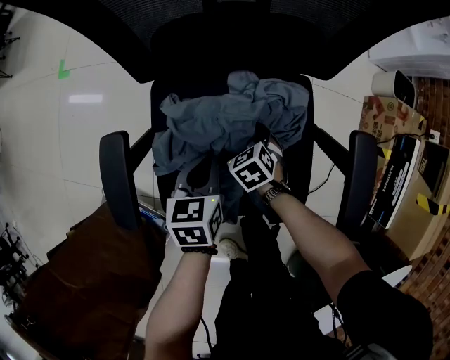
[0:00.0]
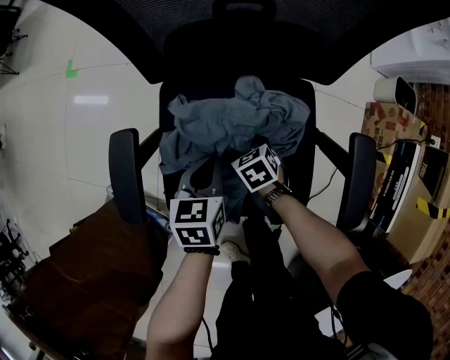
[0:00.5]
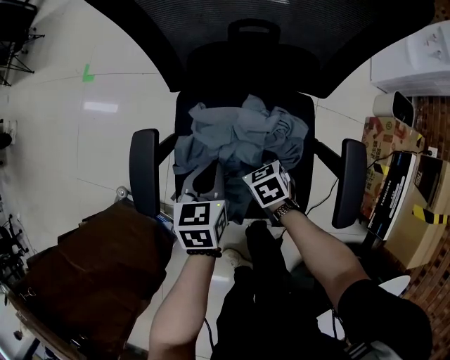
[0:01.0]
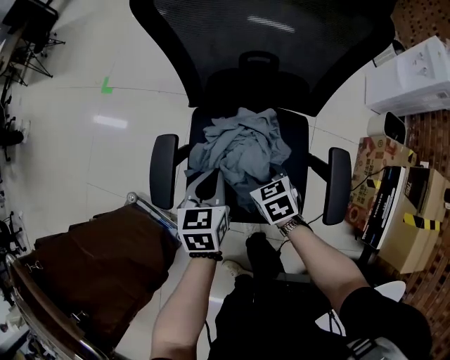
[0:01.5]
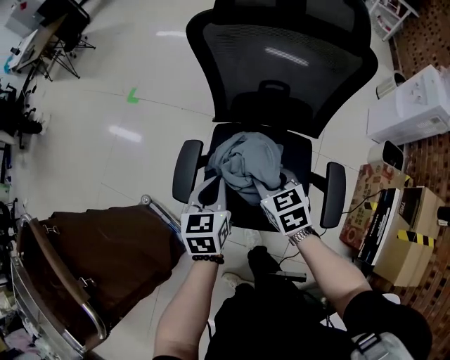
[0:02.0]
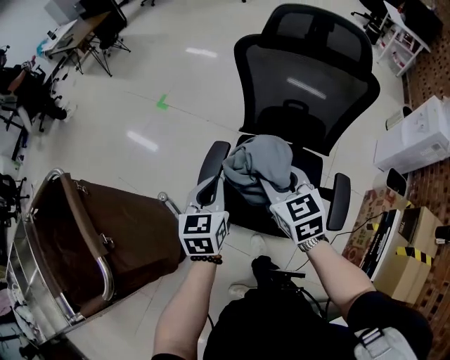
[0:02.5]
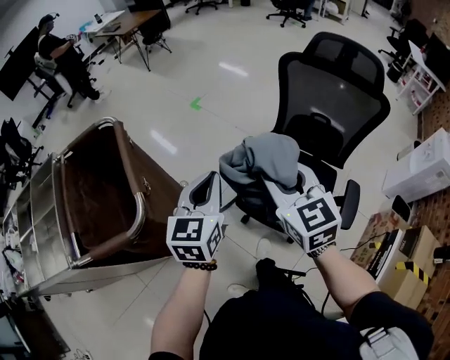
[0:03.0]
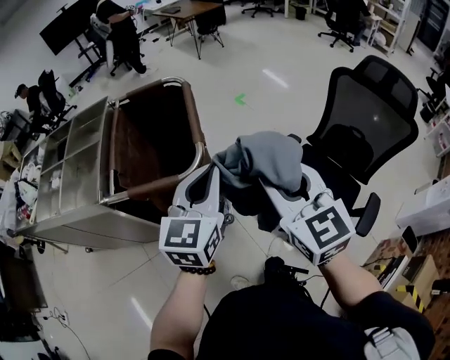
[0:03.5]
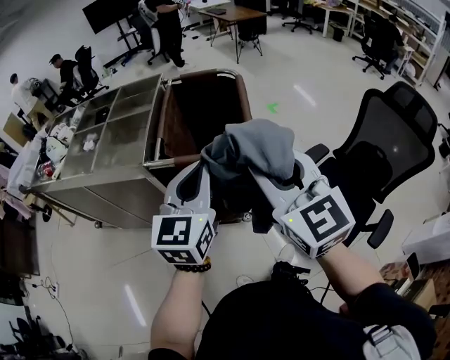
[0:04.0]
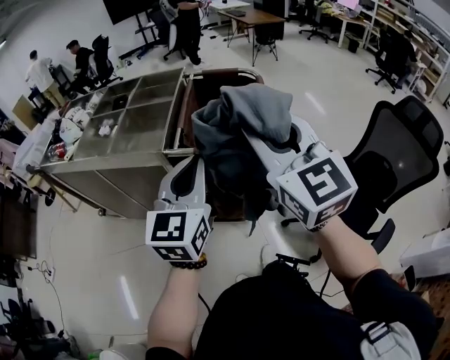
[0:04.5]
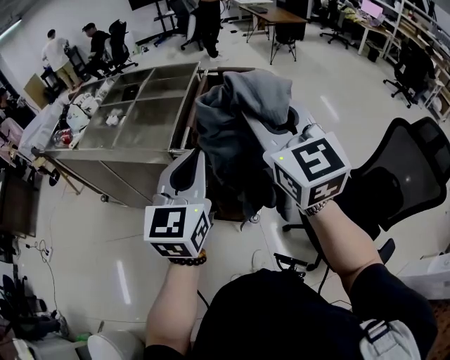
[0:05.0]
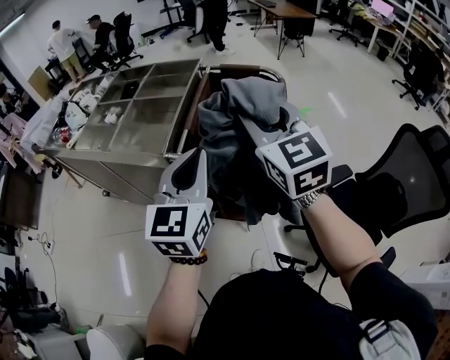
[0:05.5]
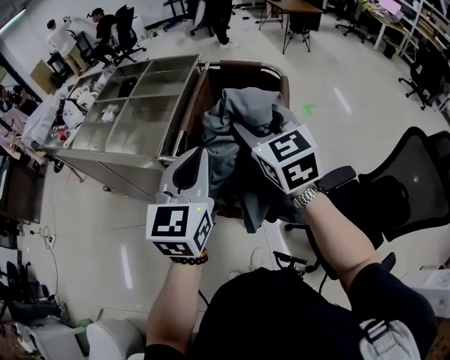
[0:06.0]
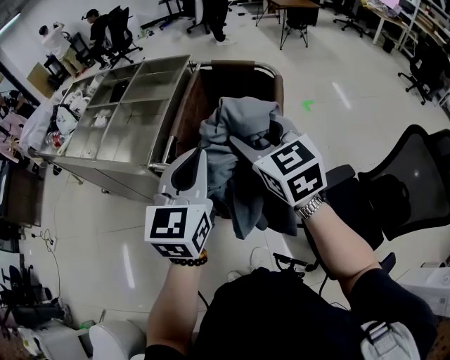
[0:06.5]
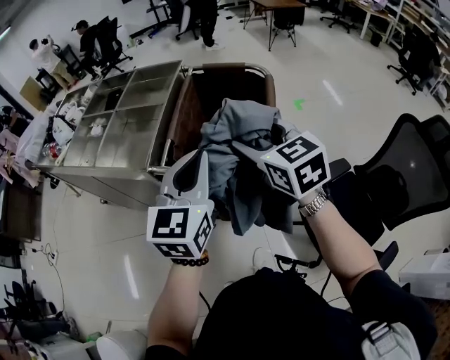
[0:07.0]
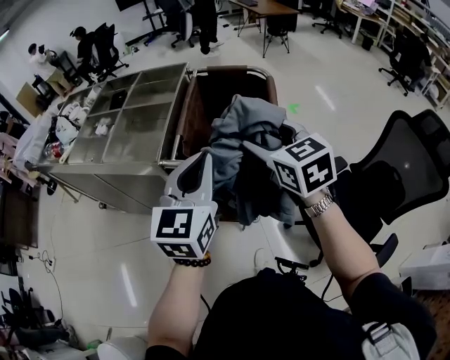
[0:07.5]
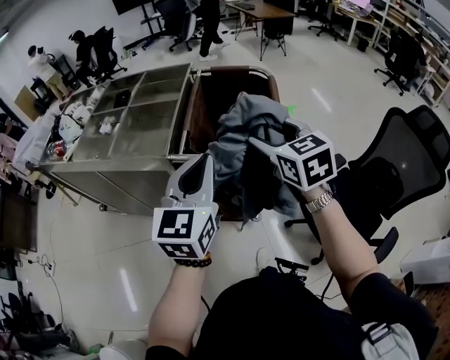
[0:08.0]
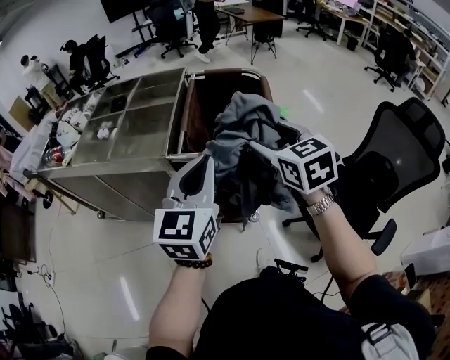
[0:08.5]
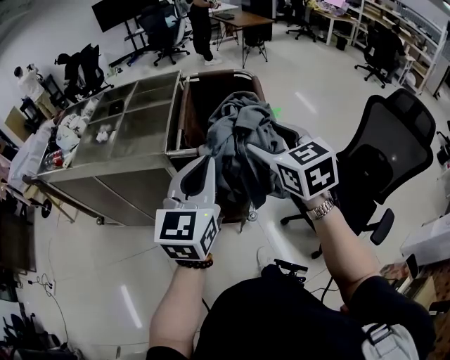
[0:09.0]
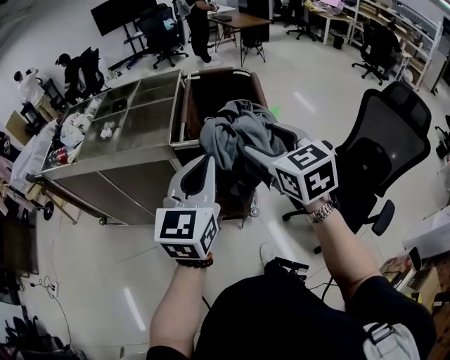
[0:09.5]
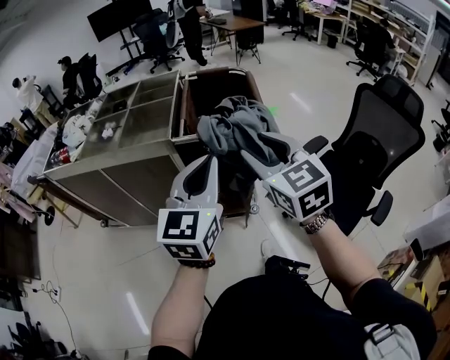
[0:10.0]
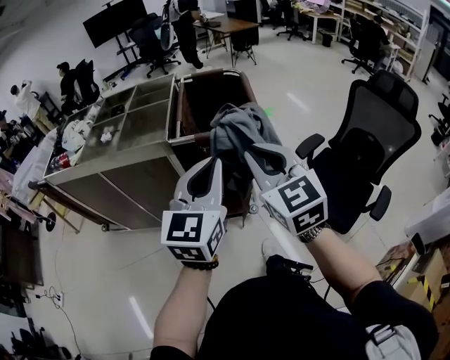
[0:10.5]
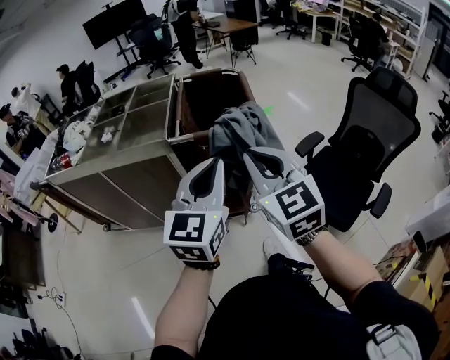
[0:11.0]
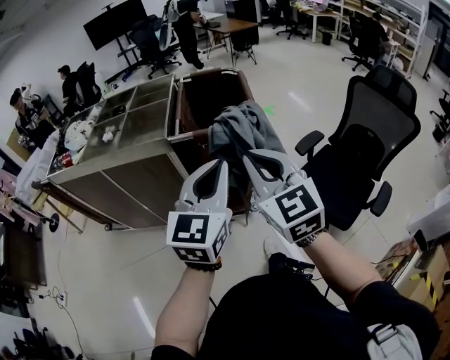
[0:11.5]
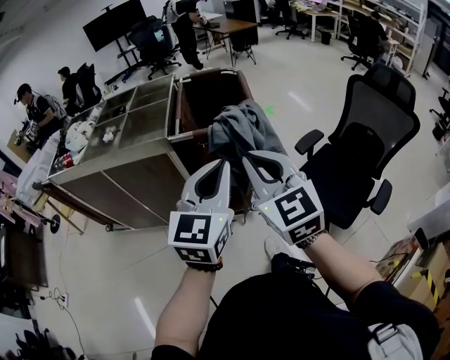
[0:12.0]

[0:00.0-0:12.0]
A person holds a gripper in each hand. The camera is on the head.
0:00.0 to 0:02.0: The two grippers go approximately 35 cm upward. The left gripper changes its angle by about 20 degrees; the right gripper swivels approximately 30 degrees, and closes.
0:02.0 to 0:04.0: Both grippers are carried some 60 cm. The right gripper tips its fingers upward by about 40 degrees, while the left gripper points its fingers roughly 30 degrees further upward.
0:04.0 to 0:06.0: The right gripper goes some 25 cm forward. Meanwhile the left gripper moves forward, approximately 10 cm.
0:06.0 to 0:08.0: The grippers both shift backward by about 5 cm.
0:08.0 to 0:10.0: The grippers both shift backward by roughly 20 cm.
0:10.0 to 0:12.0: The left gripper moves some 5 cm. Meanwhile the right gripper travels backward by some 5 cm.

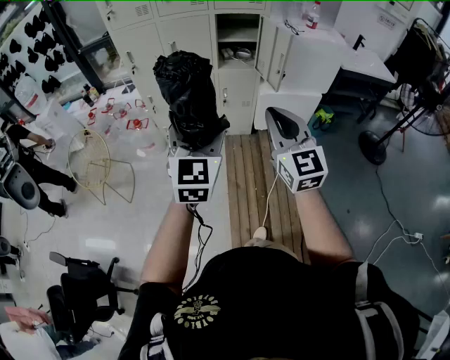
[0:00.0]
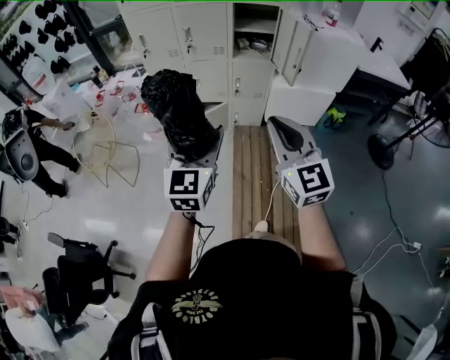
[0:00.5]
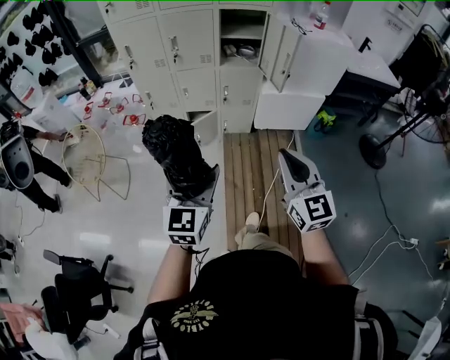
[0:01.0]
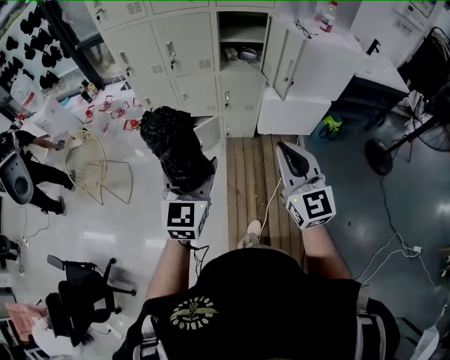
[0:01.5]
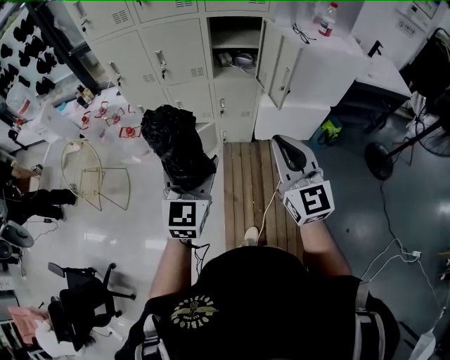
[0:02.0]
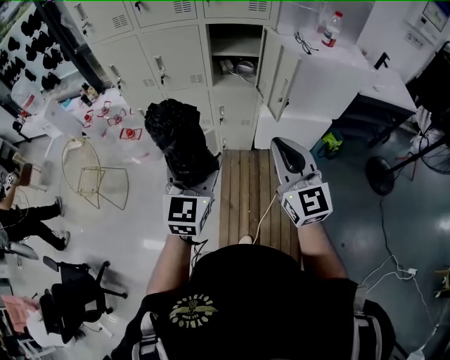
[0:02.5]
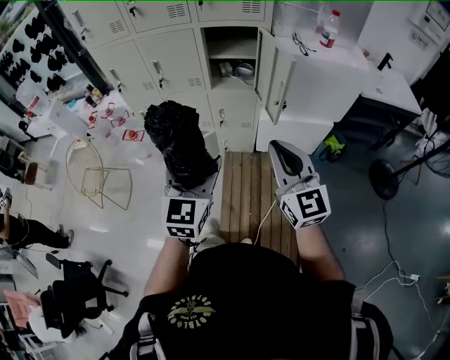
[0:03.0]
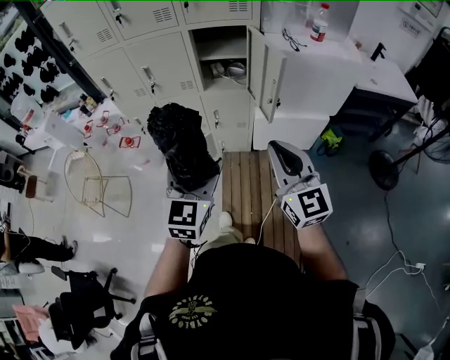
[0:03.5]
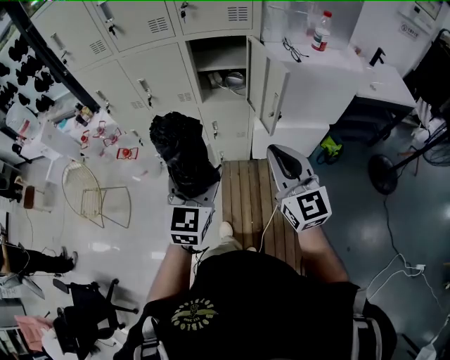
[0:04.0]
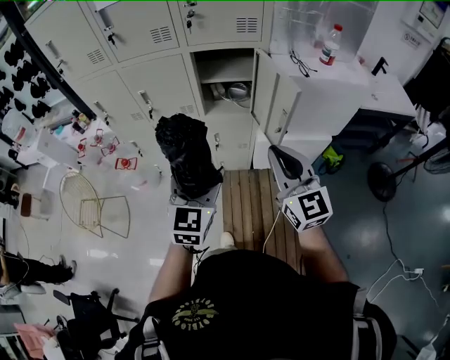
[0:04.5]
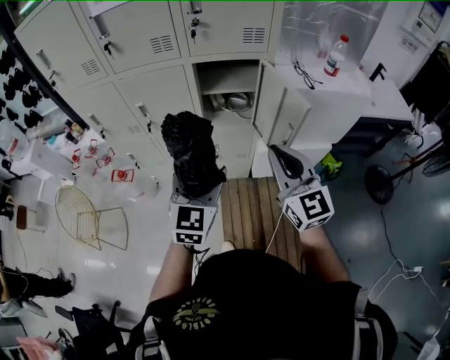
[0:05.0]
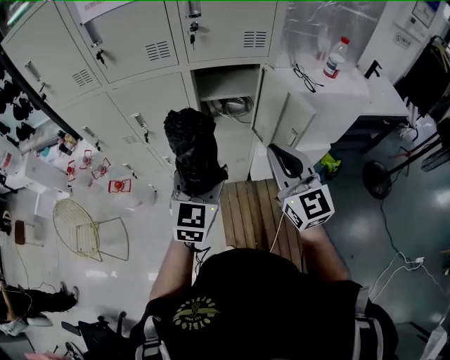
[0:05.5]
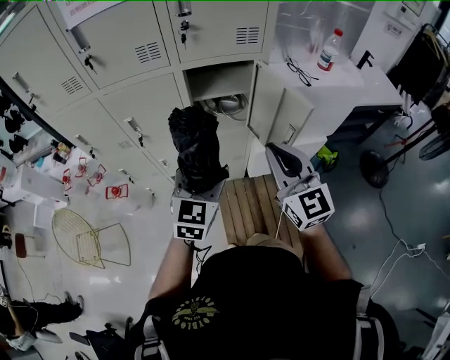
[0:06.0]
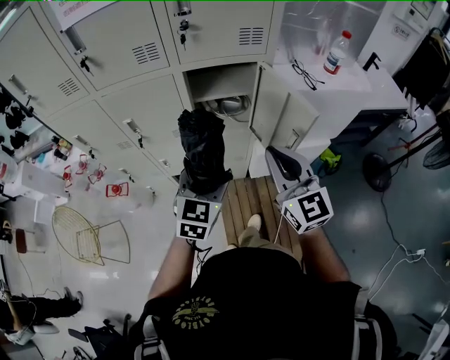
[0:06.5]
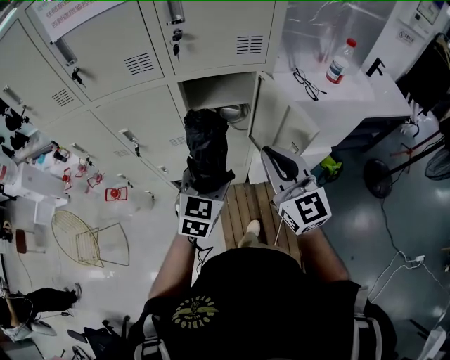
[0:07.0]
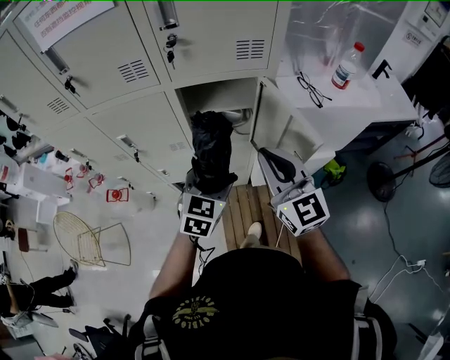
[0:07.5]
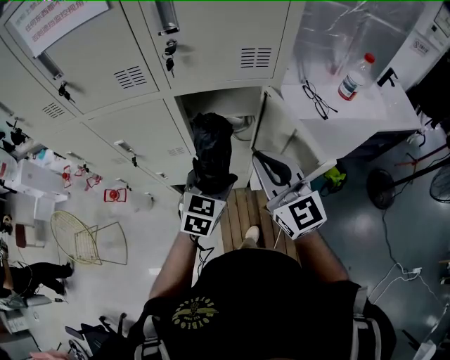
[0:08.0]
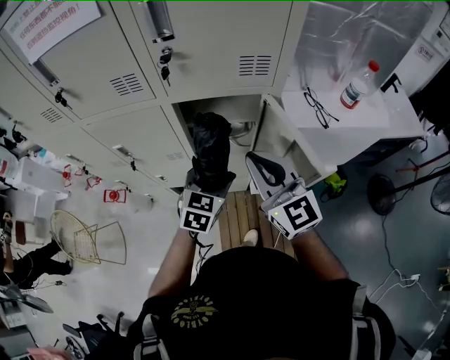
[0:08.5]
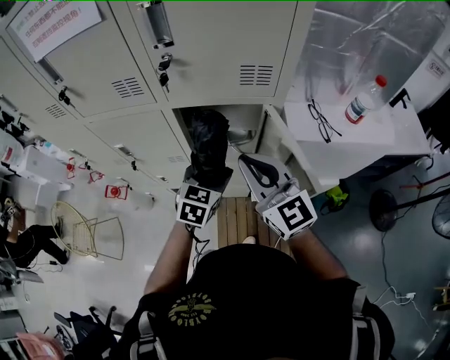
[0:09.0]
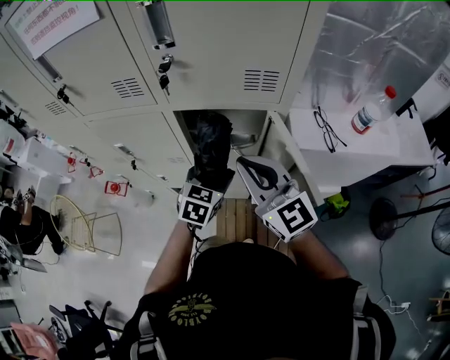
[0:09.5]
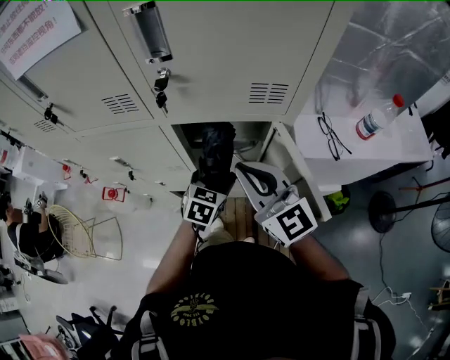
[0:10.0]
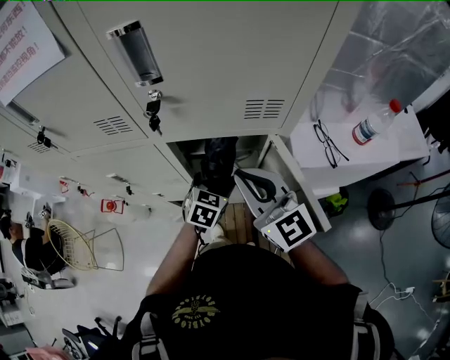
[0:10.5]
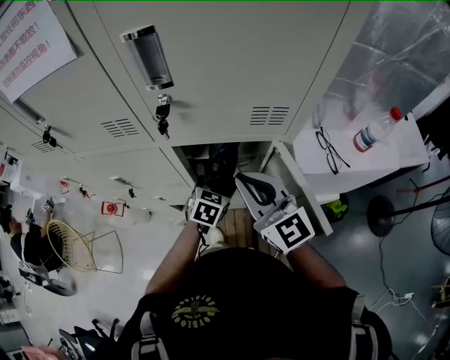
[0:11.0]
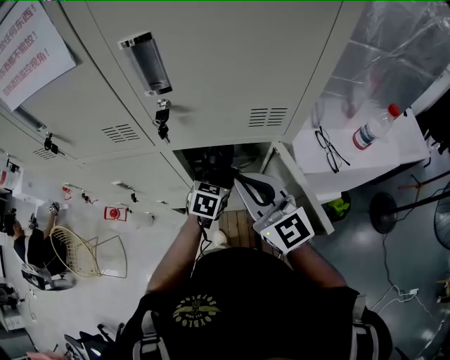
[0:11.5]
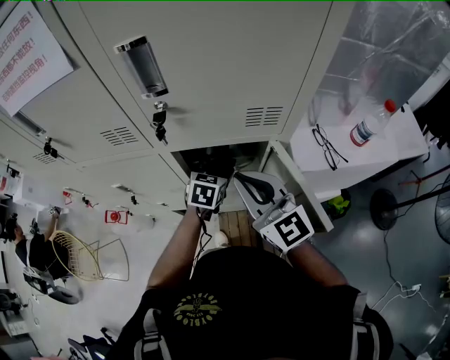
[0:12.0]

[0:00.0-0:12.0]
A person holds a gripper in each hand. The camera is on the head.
0:00.0 to 0:02.0: The left gripper shifts approximately 15 cm forward and downward, while the right gripper moves forward and to the right, about 15 cm.
0:02.0 to 0:04.0: The grippers both shift forward and to the right by some 15 cm.
0:04.0 to 0:06.0: The right gripper is displaced forward and to the left by some 20 cm; the left gripper shifts about 20 cm forward.
0:06.0 to 0:08.0: The left gripper heads forward and downward, covering approximately 15 cm. The right gripper travels forward by some 15 cm.
0:08.0 to 0:10.0: The right gripper heads forward, covering approximately 10 cm, while the left gripper is displaced forward and downward by some 15 cm.
0:10.0 to 0:12.0: The left gripper heads forward, covering approximately 10 cm.

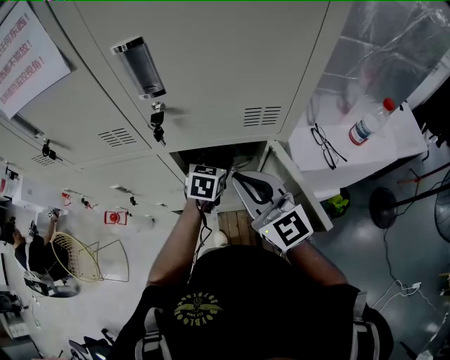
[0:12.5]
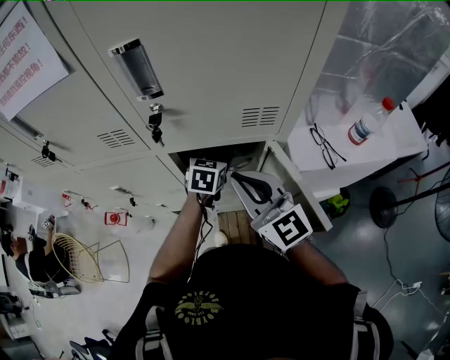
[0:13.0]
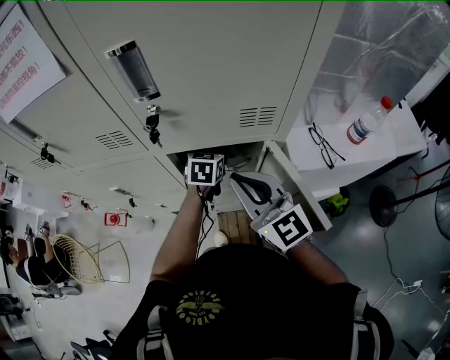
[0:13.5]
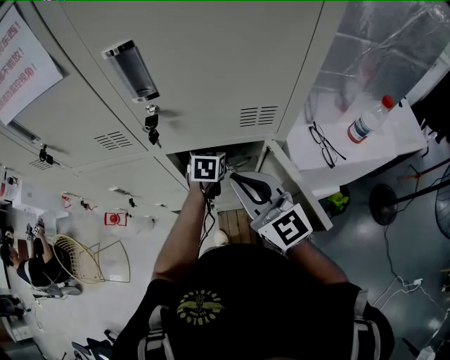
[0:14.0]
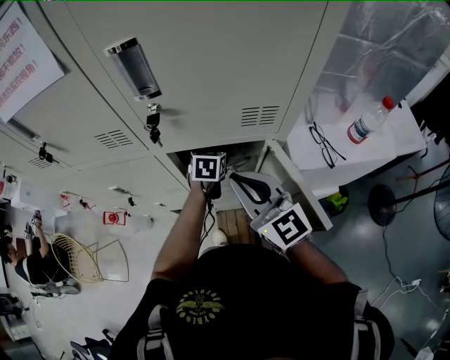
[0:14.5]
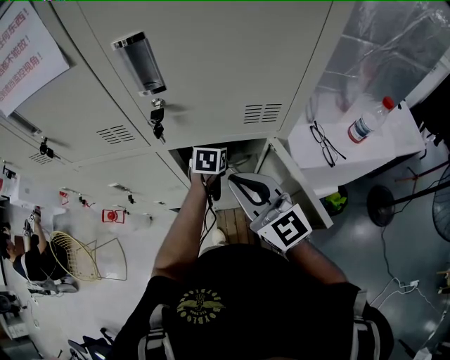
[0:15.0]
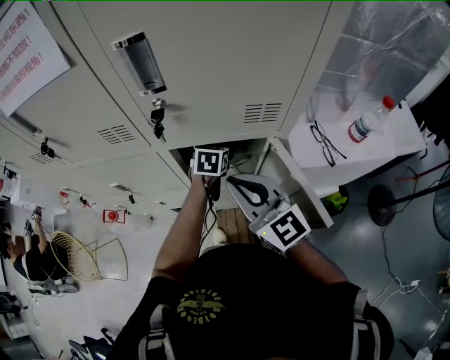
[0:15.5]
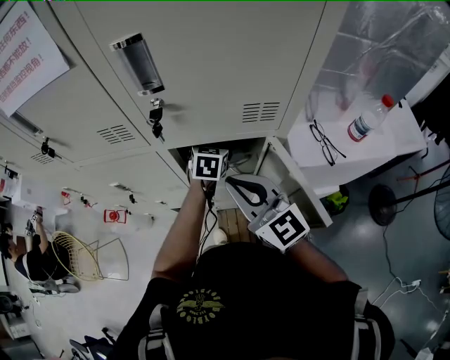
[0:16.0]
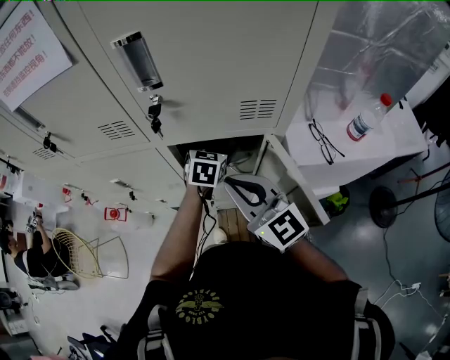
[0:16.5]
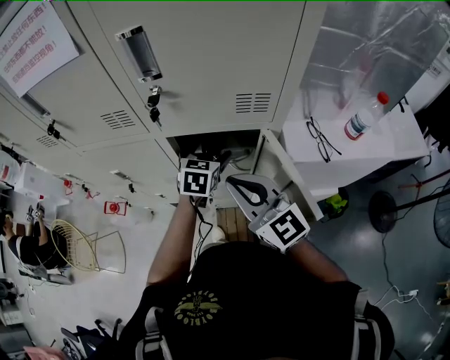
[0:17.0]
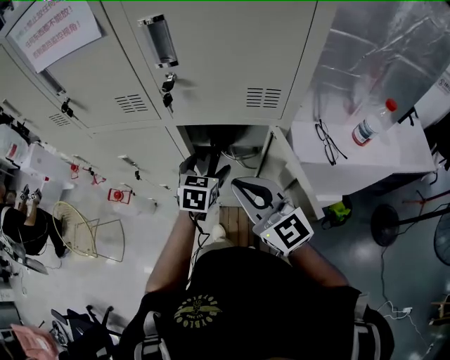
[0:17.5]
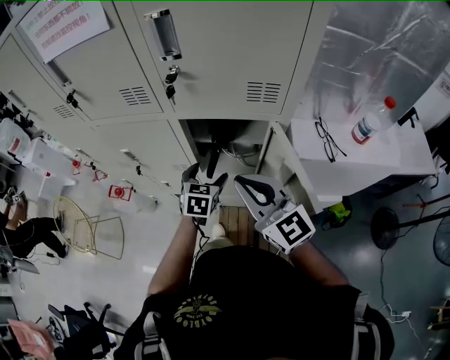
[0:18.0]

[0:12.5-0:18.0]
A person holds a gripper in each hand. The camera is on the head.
0:12.5 to 0:14.5: The left gripper changes place by roughly 5 cm.
0:14.5 to 0:16.0: The grippers stay close to where they were, moving slightly.
0:16.0 to 0:18.0: The right gripper travels backward by approximately 5 cm; the left gripper shifts roughly 15 cm backward and to the left.
